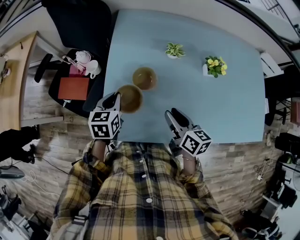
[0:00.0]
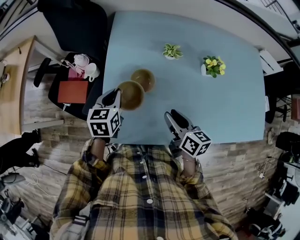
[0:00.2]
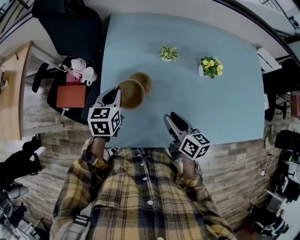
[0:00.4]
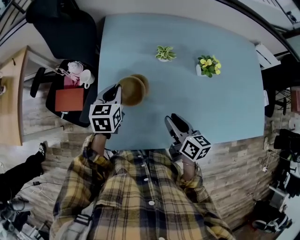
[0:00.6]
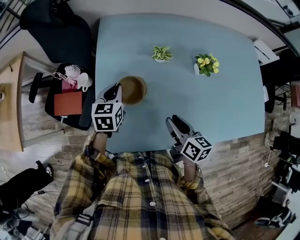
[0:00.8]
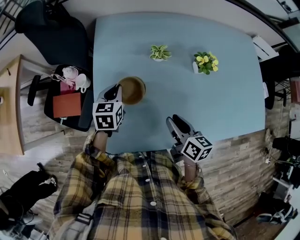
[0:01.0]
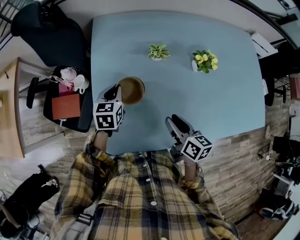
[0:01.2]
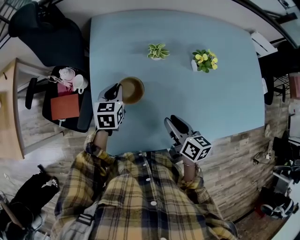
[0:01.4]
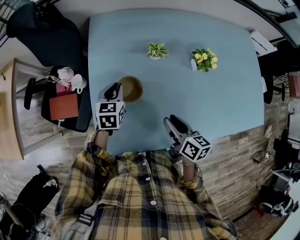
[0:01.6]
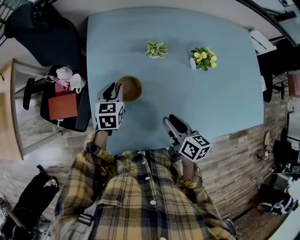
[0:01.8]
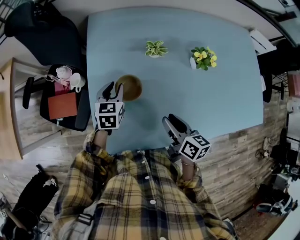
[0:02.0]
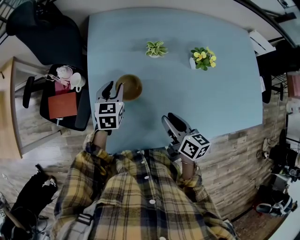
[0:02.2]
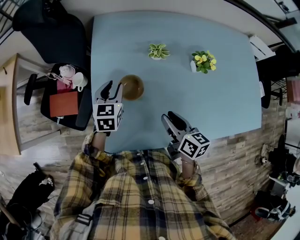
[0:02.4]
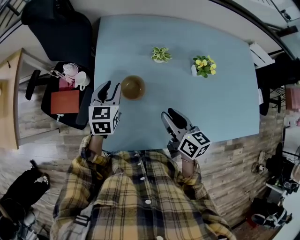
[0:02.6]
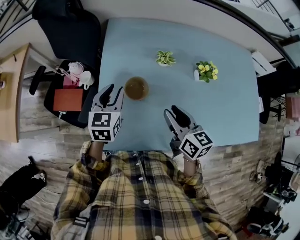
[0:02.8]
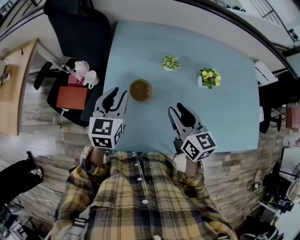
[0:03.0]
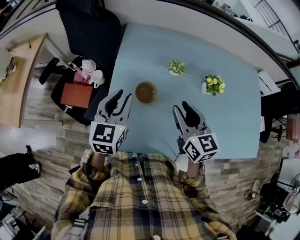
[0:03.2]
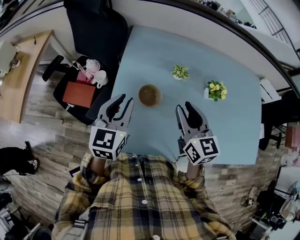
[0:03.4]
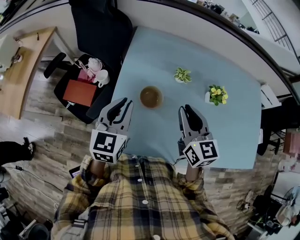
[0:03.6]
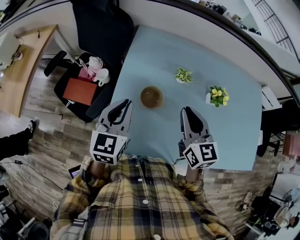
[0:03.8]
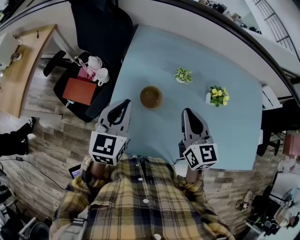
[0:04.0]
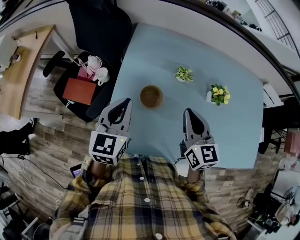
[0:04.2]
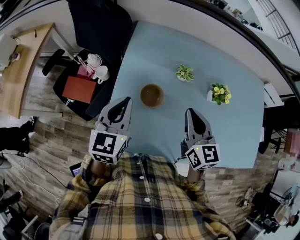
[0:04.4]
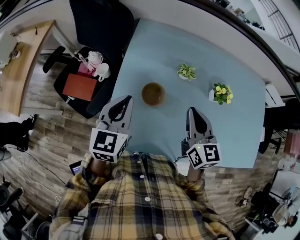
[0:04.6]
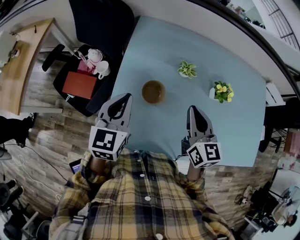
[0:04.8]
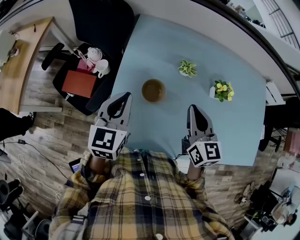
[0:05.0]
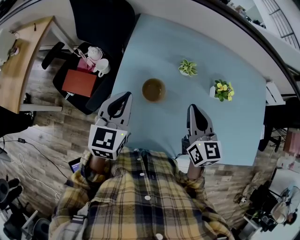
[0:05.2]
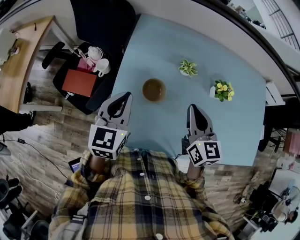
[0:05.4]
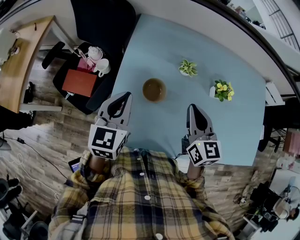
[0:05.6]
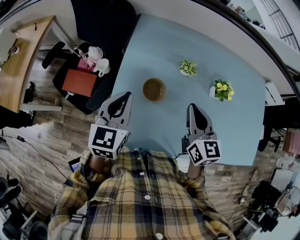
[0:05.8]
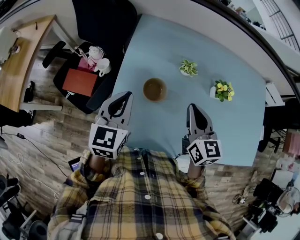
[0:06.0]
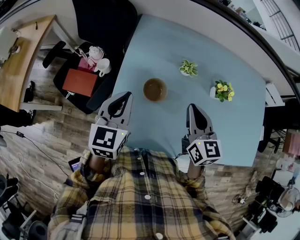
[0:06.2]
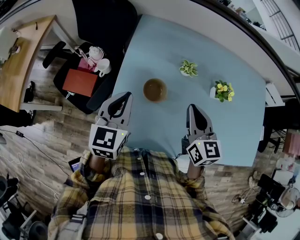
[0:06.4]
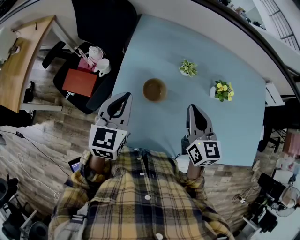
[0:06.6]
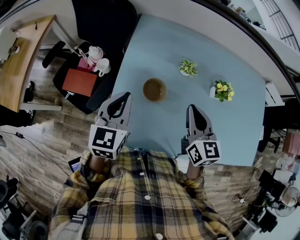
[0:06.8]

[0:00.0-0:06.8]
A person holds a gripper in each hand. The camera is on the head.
0:00.0 to 0:01.4: The left gripper is displaced forward and to the right by approximately 10 cm.
0:01.4 to 0:02.8: The grippers both shift upward by some 10 cm. The right gripper rotates about 20 degrees.
0:02.8 to 0:04.0: The left gripper is displaced upward and backward by some 10 cm, and closes up. Meanwhile the right gripper moves upward, approximately 5 cm, turns by approximately 20 degrees, and closes.
0:04.0 to 0:05.4: There are only small adjustments of the grippers.
0:05.4 to 0:06.8: Both grippers stay about where they are.

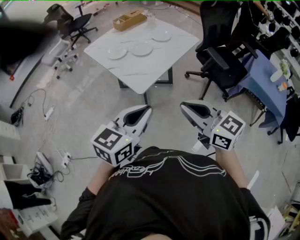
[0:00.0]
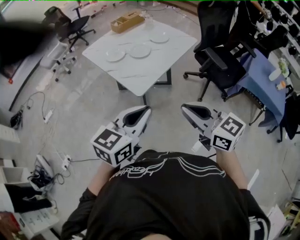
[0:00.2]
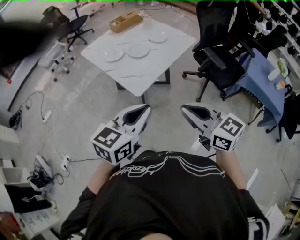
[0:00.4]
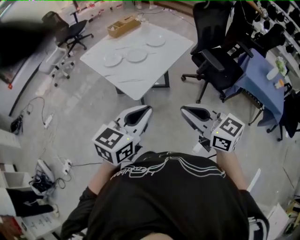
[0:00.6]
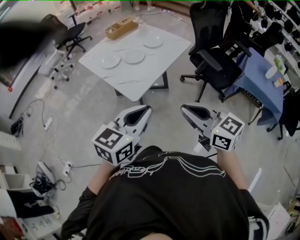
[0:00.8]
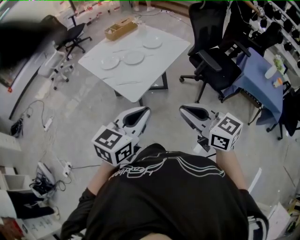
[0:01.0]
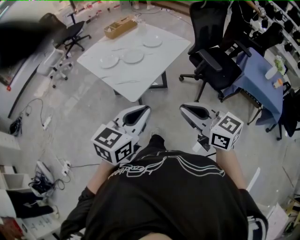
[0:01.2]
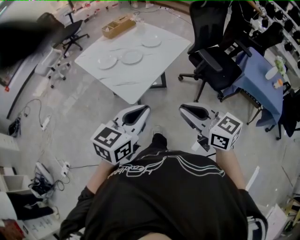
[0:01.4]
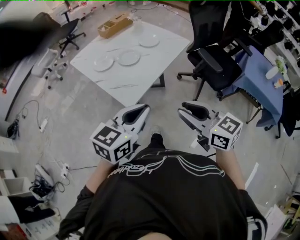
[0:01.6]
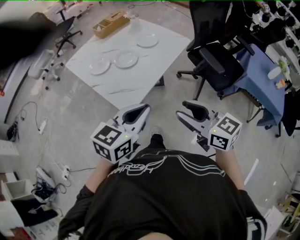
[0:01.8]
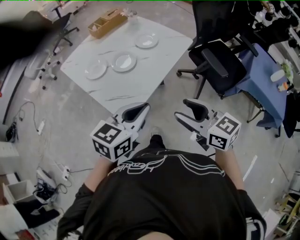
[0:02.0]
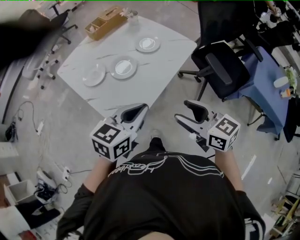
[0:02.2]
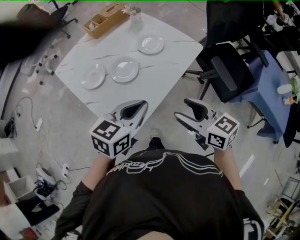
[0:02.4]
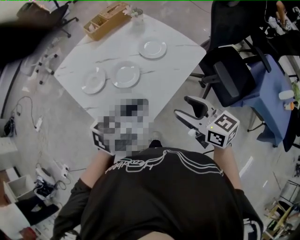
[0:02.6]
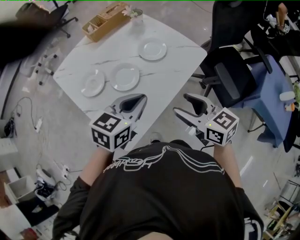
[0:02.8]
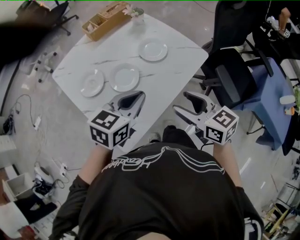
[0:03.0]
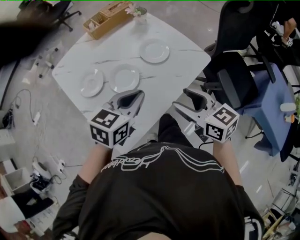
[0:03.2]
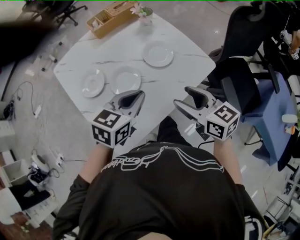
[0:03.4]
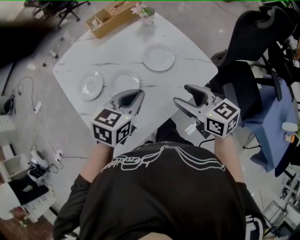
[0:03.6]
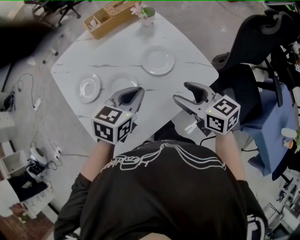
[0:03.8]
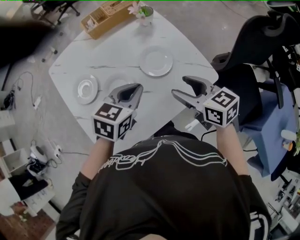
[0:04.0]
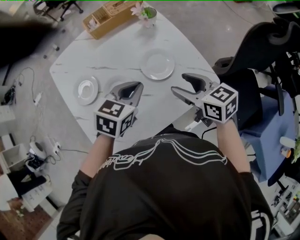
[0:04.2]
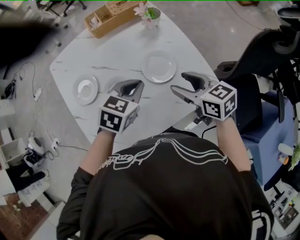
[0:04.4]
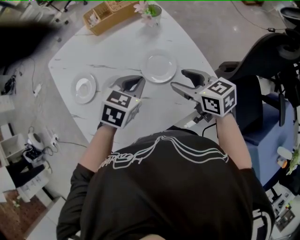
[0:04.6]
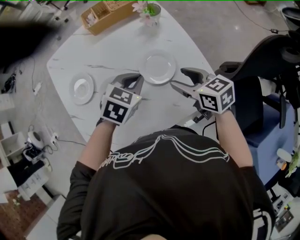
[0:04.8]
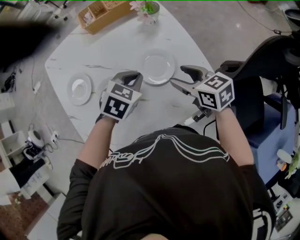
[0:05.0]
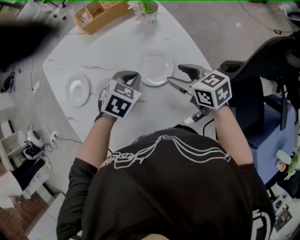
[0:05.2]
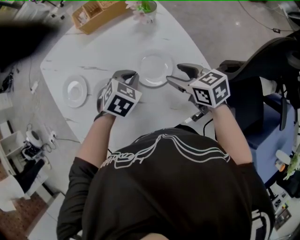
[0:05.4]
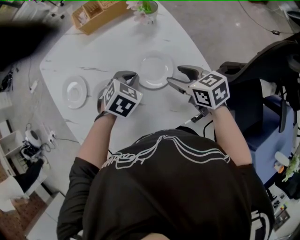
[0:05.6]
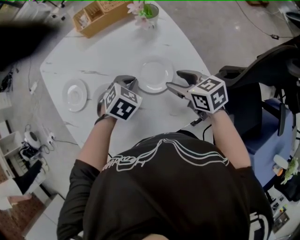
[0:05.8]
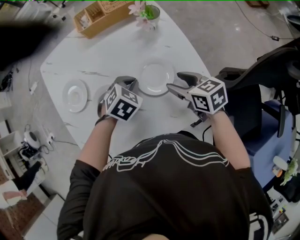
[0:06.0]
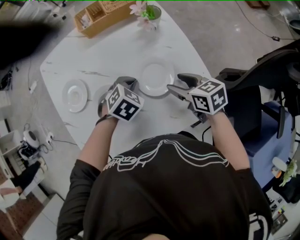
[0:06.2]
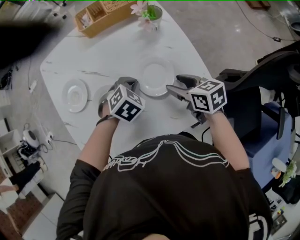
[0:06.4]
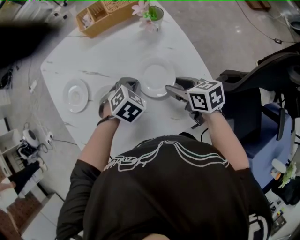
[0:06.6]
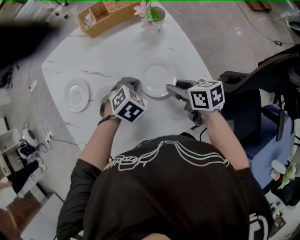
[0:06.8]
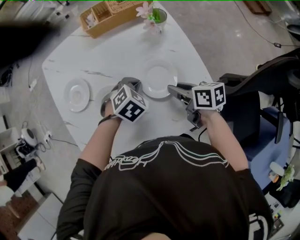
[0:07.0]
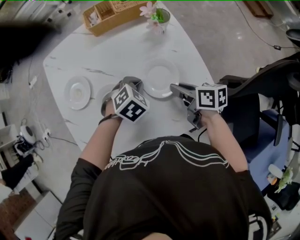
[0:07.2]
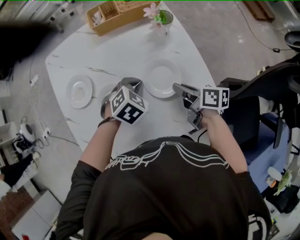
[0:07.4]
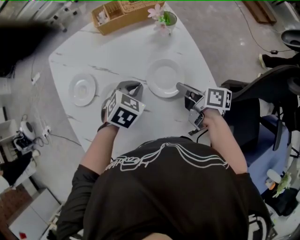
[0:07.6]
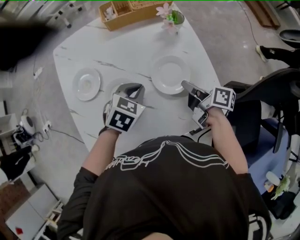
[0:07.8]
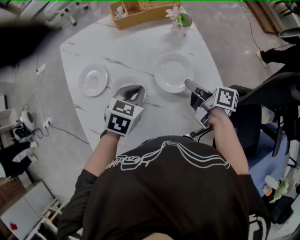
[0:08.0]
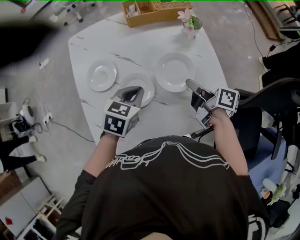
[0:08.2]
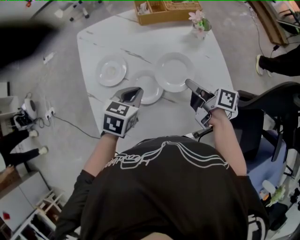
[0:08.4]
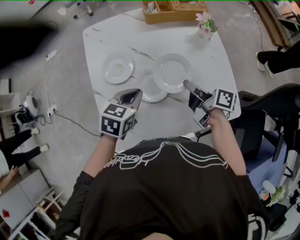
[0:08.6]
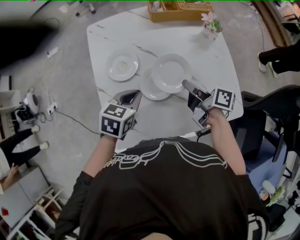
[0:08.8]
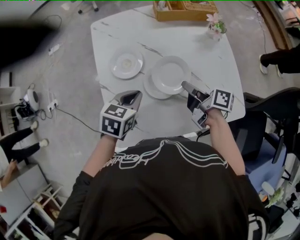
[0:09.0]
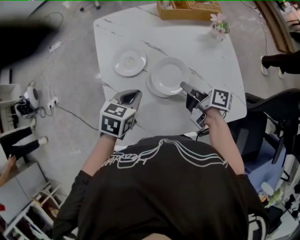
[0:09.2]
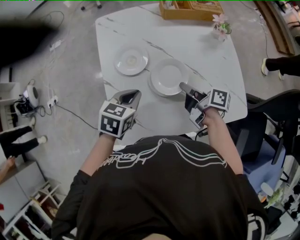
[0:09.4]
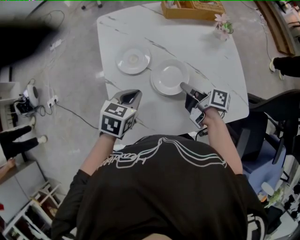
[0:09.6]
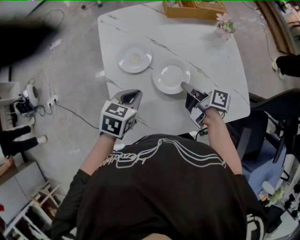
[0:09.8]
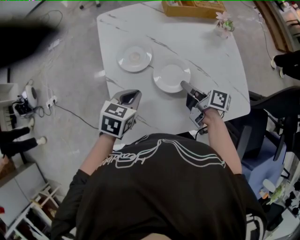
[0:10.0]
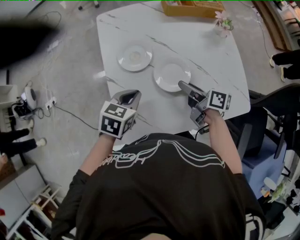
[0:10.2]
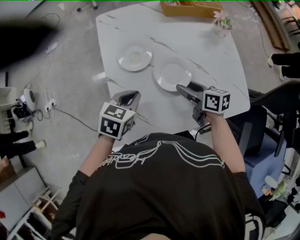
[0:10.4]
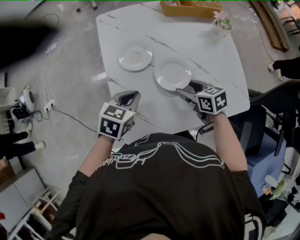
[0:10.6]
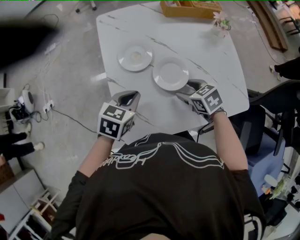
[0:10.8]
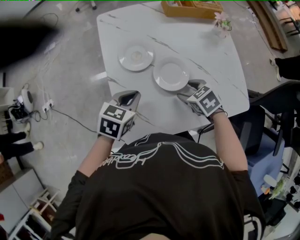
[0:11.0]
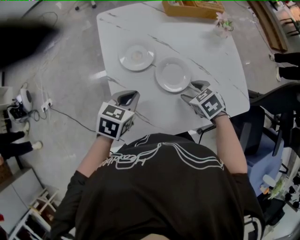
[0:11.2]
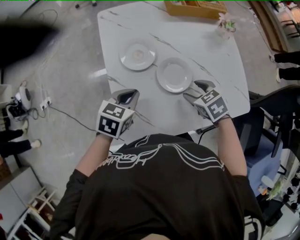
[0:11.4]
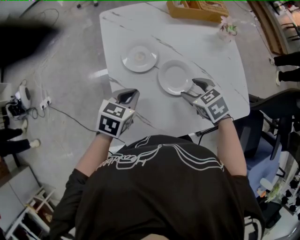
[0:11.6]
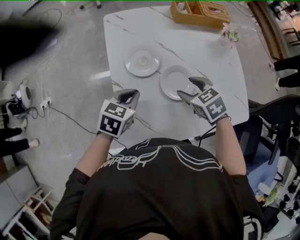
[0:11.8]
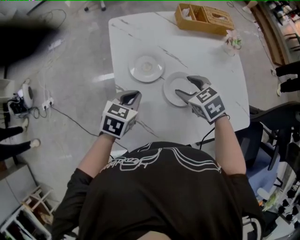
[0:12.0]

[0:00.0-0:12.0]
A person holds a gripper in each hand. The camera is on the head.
0:00.0 to 0:01.6: The left gripper moves forward, about 10 cm; the right gripper goes approximately 10 cm forward and to the right.
0:01.6 to 0:03.0: Both grippers travel together forward, approximately 35 cm. The right gripper opens up.
0:03.0 to 0:04.4: The right gripper heads forward, covering approximately 25 cm, and swivels about 20 degrees. Meanwhile the left gripper moves forward and downward, roughly 20 cm, and rotates approximately 20 degrees.
0:04.4 to 0:06.0: Both grippers travel together downward and forward, some 15 cm. The left gripper turns by some 20 degrees.
0:06.0 to 0:07.6: The right gripper rotates around the line of its fingers by about 40 degrees, clockwise from behind, and closes.
0:07.6 to 0:09.0: The grippers both shift to the left by about 20 cm. The left gripper turns by approximately 30 degrees.
0:09.0 to 0:10.4: The grippers both shift to the left by about 5 cm. The right gripper turns by some 30 degrees, and opens its fingers.
0:10.4 to 0:12.0: The left gripper ends up roughly 5 cm from where it was. The right gripper goes approximately 10 cm to the left and forward, and twists about 40 degrees counterclockwise, seen from behind.

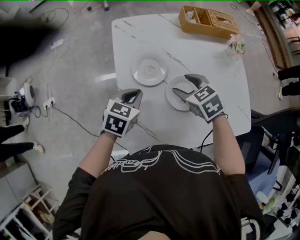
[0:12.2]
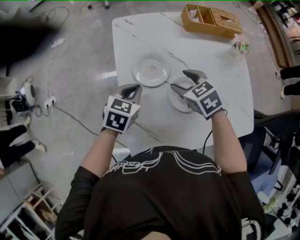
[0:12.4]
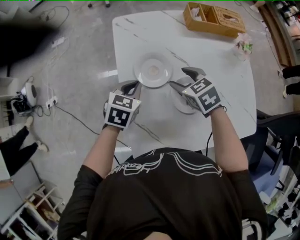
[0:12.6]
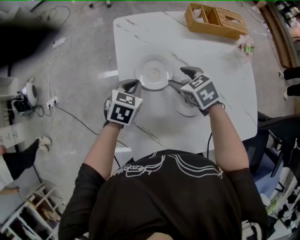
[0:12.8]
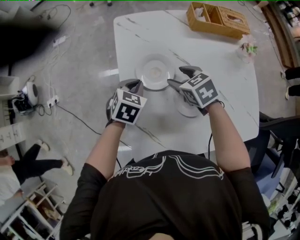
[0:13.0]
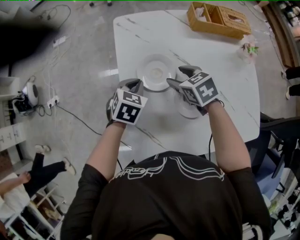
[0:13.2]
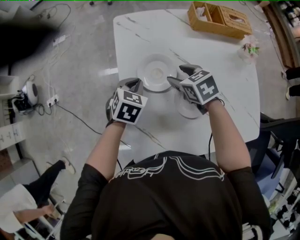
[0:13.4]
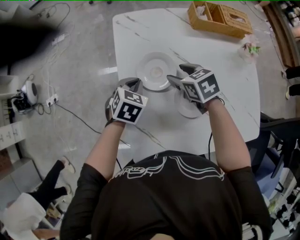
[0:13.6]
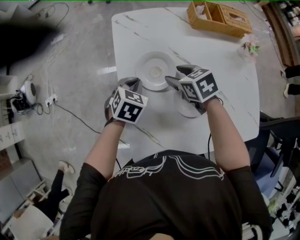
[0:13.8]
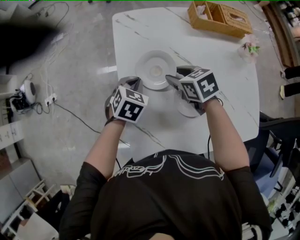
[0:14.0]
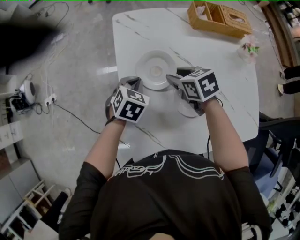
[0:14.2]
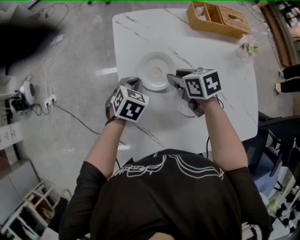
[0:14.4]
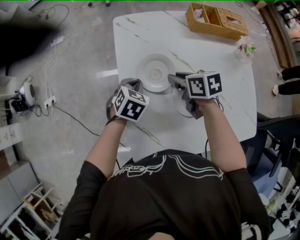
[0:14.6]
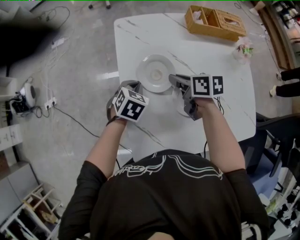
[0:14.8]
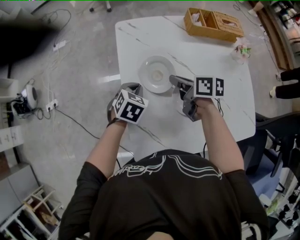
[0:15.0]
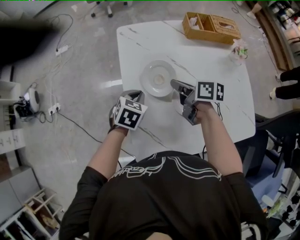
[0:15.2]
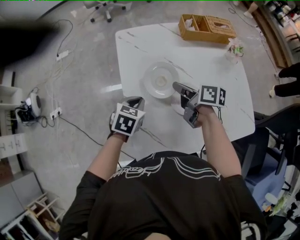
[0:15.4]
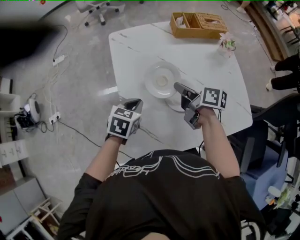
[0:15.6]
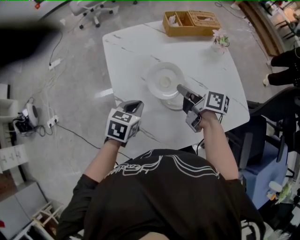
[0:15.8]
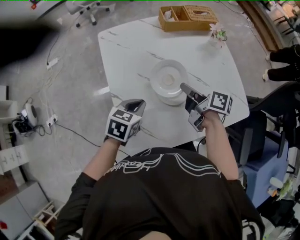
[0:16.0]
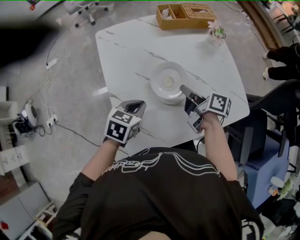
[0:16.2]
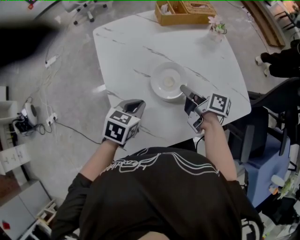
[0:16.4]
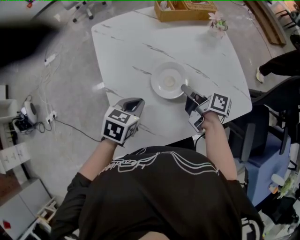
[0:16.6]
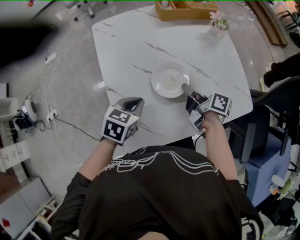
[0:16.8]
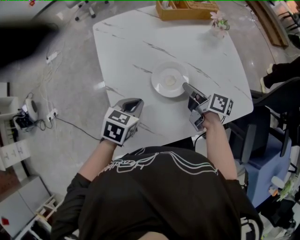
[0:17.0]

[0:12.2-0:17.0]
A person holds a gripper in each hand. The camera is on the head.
0:12.2 to 0:13.8: Both grippers travel together forward and downward, roughly 10 cm.
0:13.8 to 0:15.4: The left gripper moves backward, some 5 cm; the right gripper heads upward, covering some 5 cm, twists roughly 50 degrees clockwise, seen from behind, and closes its fingers.
0:15.4 to 0:17.0: The two grippers go roughly 15 cm to the right and backward.
